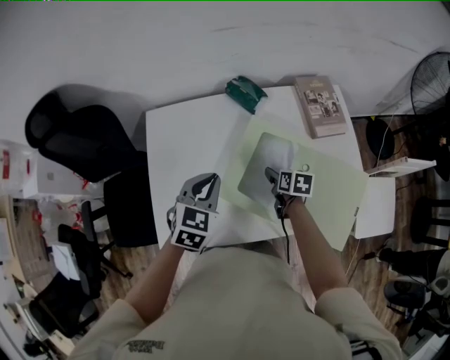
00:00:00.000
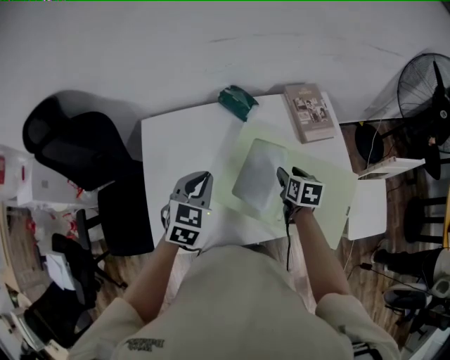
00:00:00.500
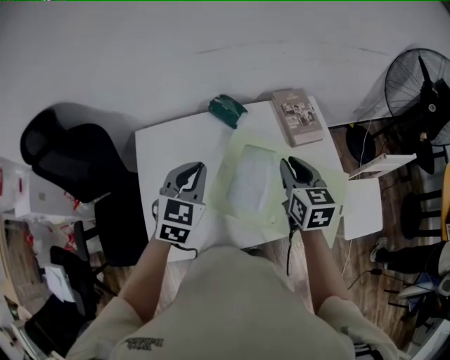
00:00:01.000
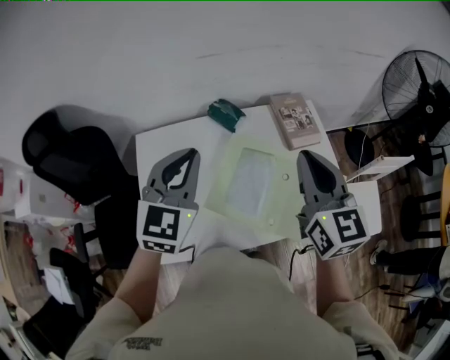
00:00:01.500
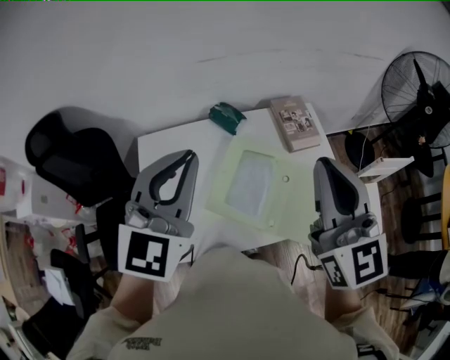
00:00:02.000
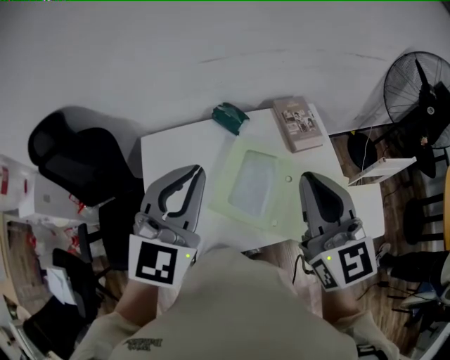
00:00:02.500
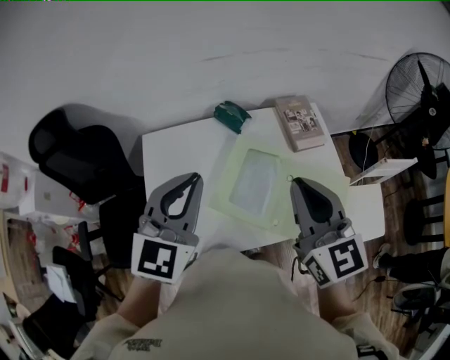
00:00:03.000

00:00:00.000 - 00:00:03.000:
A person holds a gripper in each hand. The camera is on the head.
00:00:00.000 - 00:00:01.500: The left gripper shifts roughly 20 cm upward, and turns by approximately 30 degrees, while the right gripper moves upward, approximately 40 cm, tilts its fingers about 40 degrees upward, and closes its fingers.
00:00:01.500 - 00:00:03.000: Both grippers travel together backward, some 5 cm. The right gripper reaches roughly 10 cm upward, then returns. Meanwhile the left gripper goes upward and returns, approximately 10 cm each way.

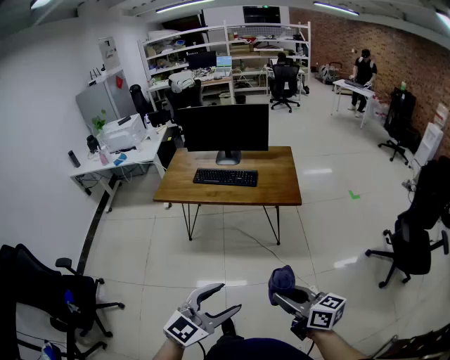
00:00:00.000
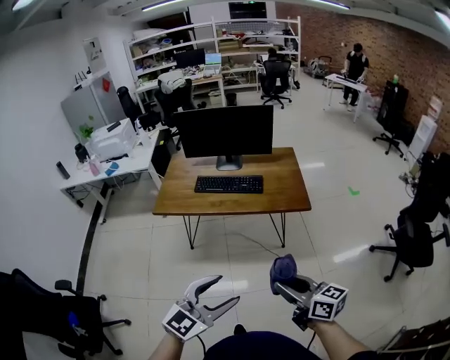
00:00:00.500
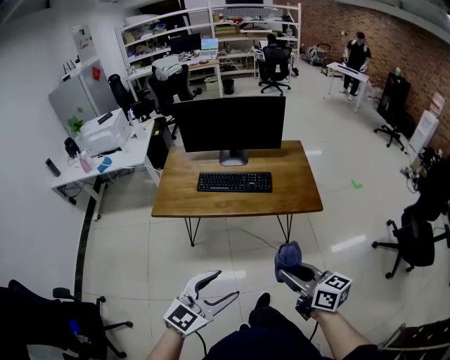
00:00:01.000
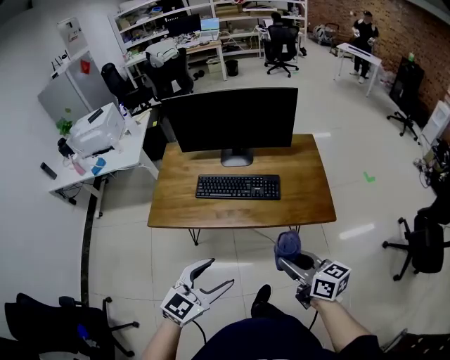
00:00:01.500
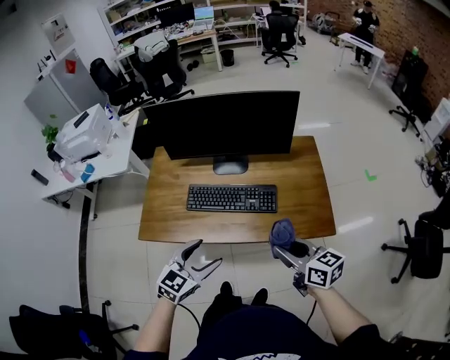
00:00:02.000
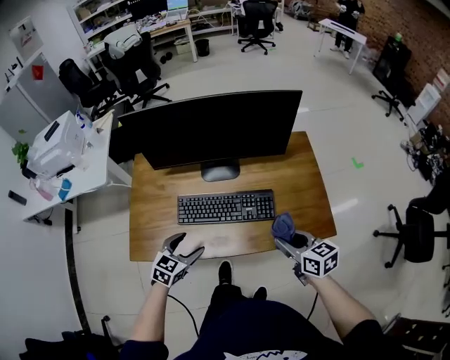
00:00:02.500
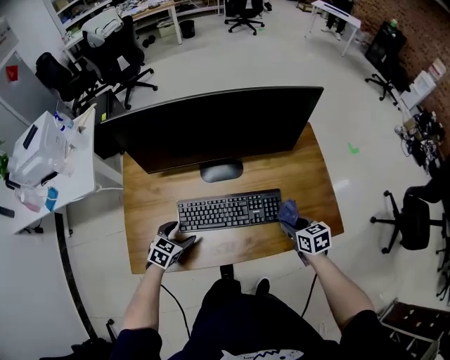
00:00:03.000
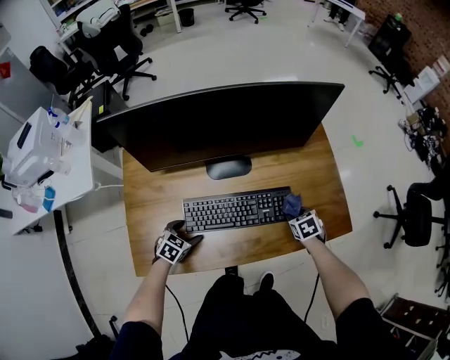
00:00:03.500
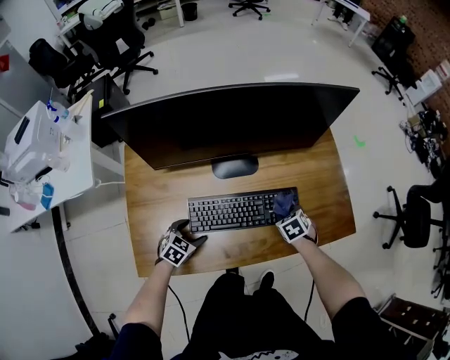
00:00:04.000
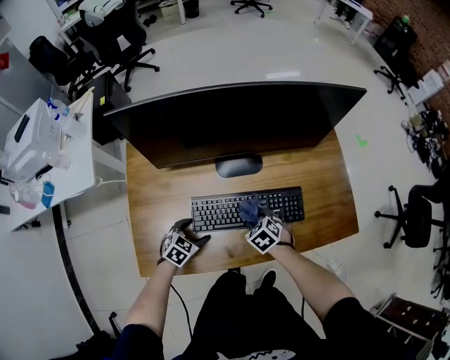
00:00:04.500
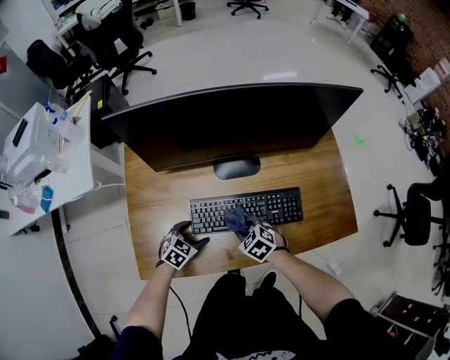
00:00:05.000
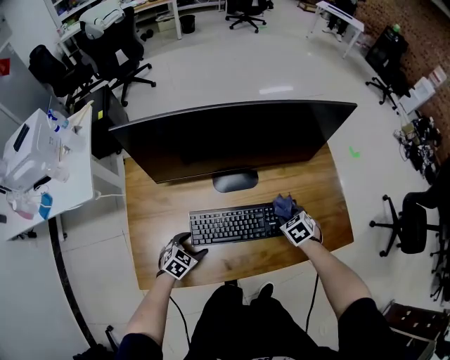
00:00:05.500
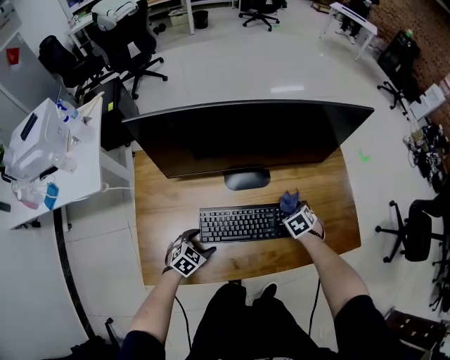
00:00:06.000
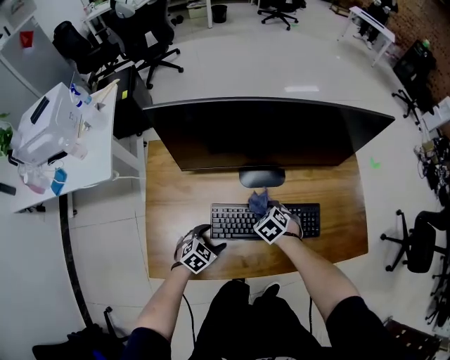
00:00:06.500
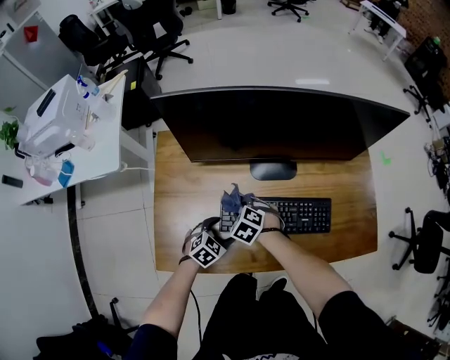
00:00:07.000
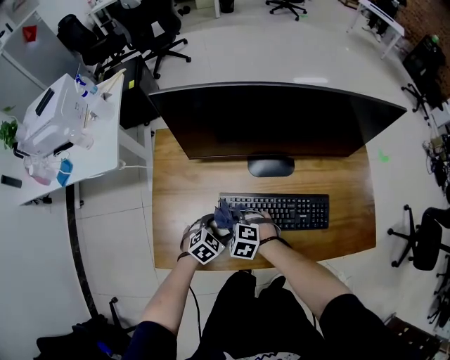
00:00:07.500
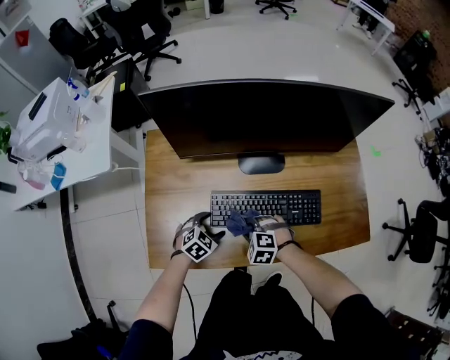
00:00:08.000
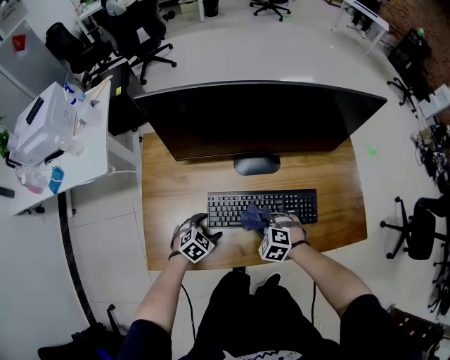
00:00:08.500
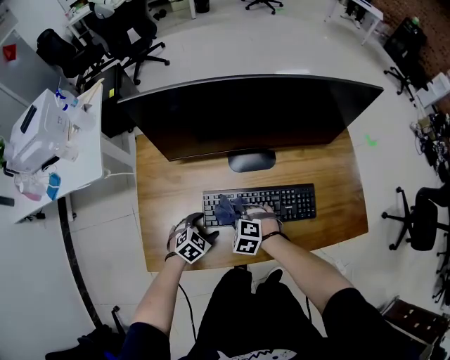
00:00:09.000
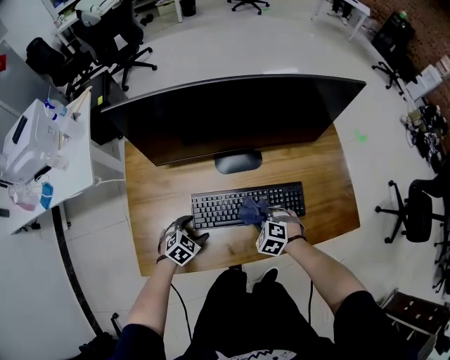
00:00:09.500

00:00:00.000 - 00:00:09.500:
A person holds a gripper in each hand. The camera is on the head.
00:00:00.000 - 00:00:02.000: The two grippers travel together, forward, about 60 cm.
00:00:02.000 - 00:00:04.000: The two grippers go about 30 cm downward. The left gripper changes its angle by about 30 degrees. Meanwhile the right gripper angles its fingers downward, by some 50 degrees.
00:00:04.000 - 00:00:05.500: The right gripper moves about 20 cm to the left and comes back.
00:00:05.500 - 00:00:07.500: The right gripper changes place by approximately 35 cm, and rolls counterclockwise, seen from behind, by approximately 40 degrees.
00:00:07.500 - 00:00:09.500: The right gripper goes left and right, about 20 cm each way, reversing 2 times.

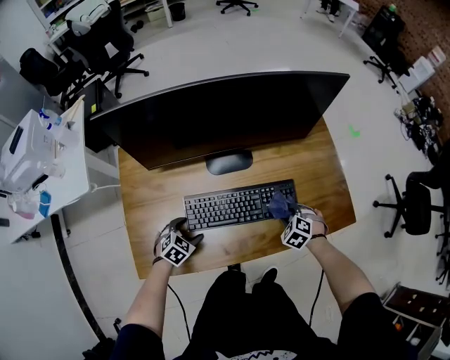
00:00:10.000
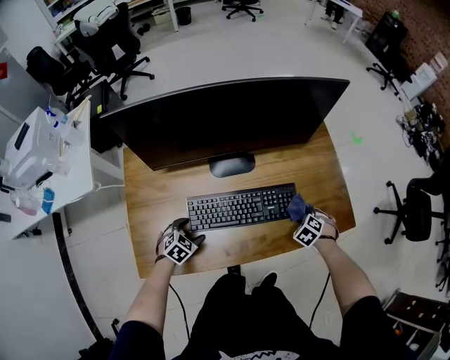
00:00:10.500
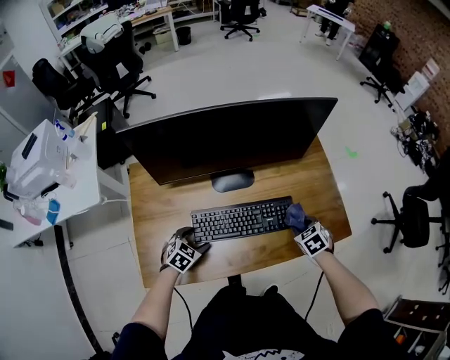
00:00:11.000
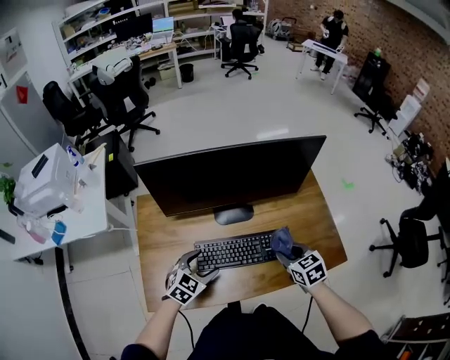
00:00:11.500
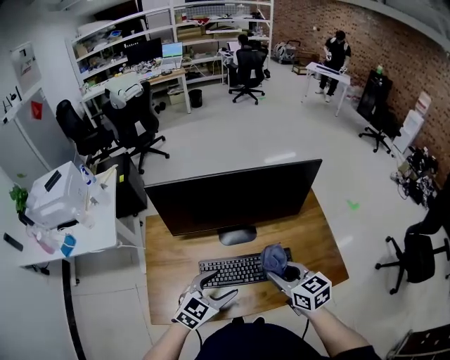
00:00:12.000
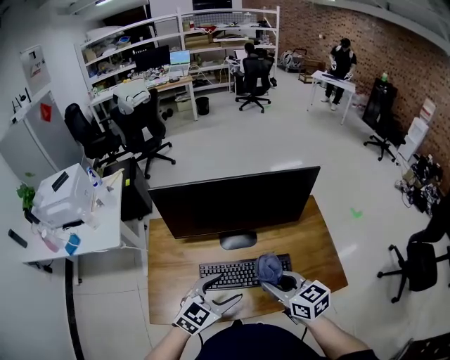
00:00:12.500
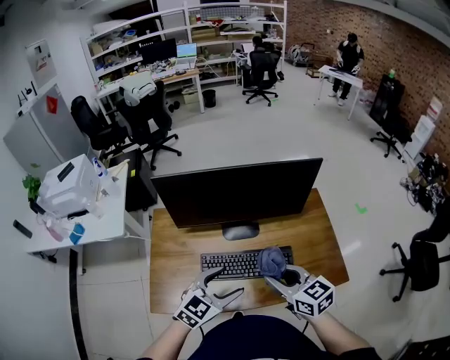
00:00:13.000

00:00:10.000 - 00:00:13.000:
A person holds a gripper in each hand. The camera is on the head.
00:00:10.000 - 00:00:11.500: The grippers both shift upward by some 20 cm. The right gripper turns by some 50 degrees, while the left gripper changes its angle by some 20 degrees.
00:00:11.500 - 00:00:13.000: The right gripper moves upward and backward, about 15 cm, and rotates about 30 degrees. The left gripper travels upward and to the right by about 15 cm.

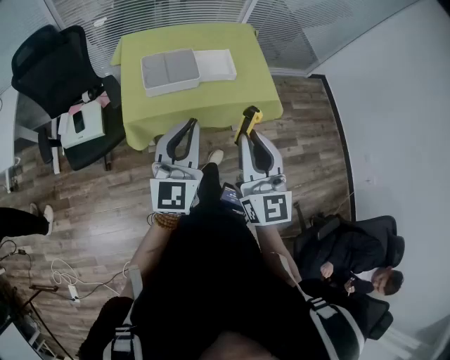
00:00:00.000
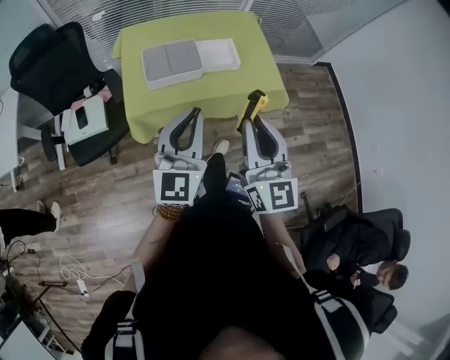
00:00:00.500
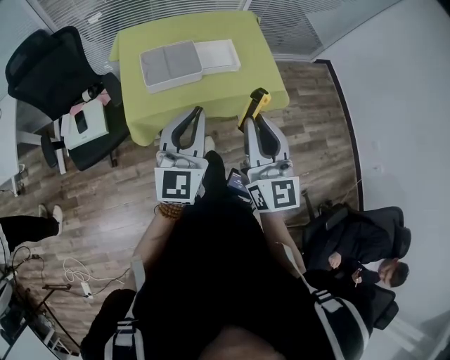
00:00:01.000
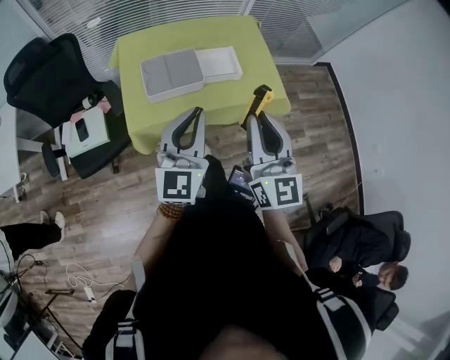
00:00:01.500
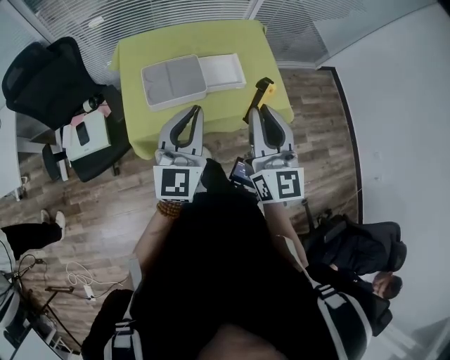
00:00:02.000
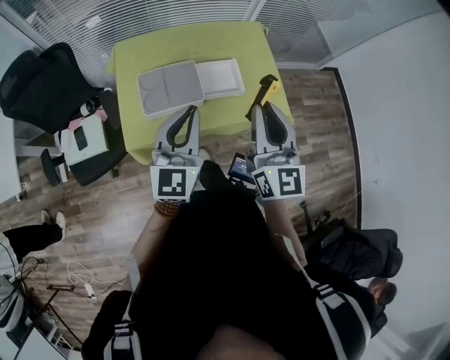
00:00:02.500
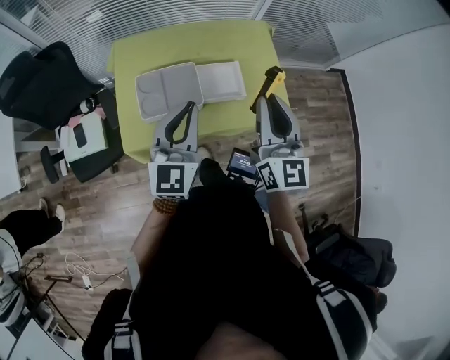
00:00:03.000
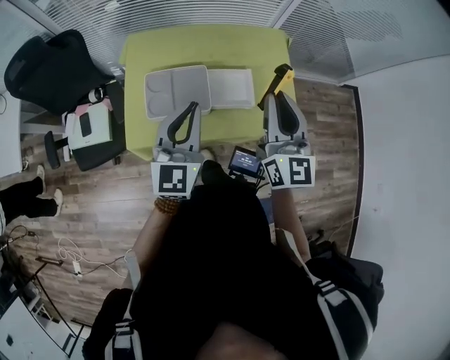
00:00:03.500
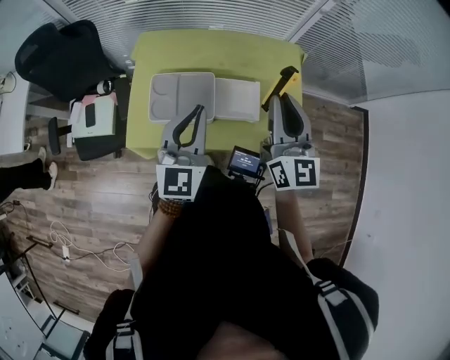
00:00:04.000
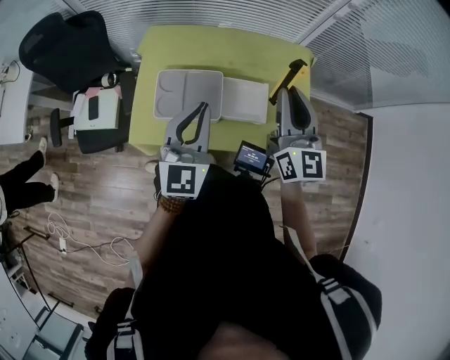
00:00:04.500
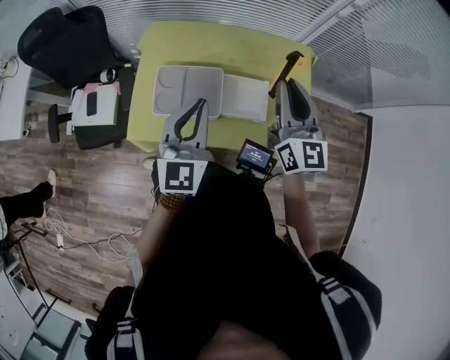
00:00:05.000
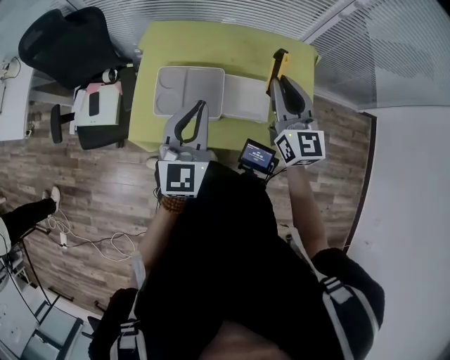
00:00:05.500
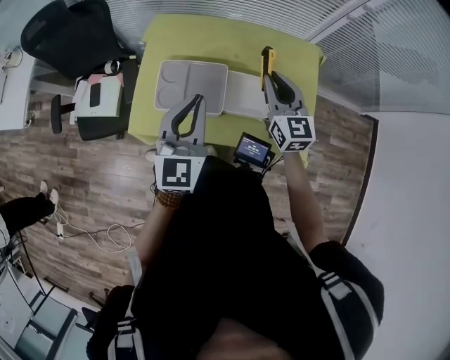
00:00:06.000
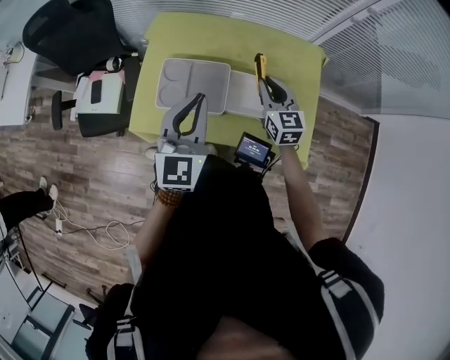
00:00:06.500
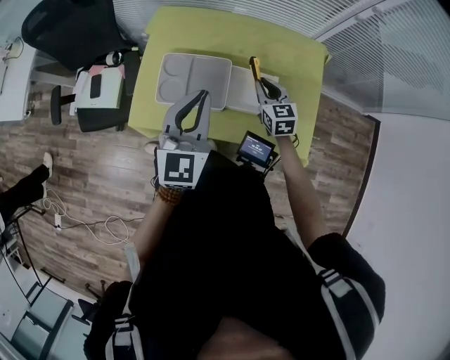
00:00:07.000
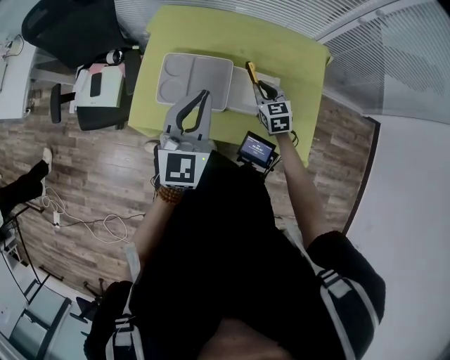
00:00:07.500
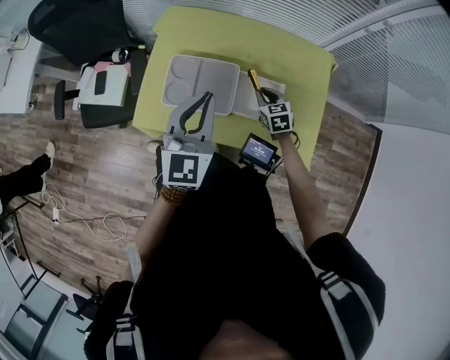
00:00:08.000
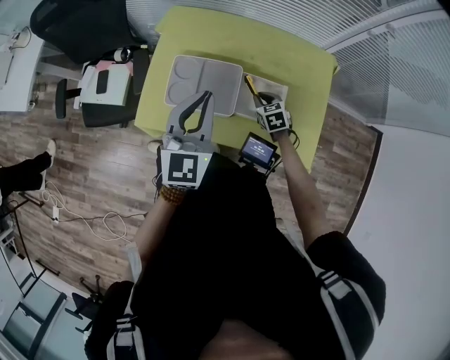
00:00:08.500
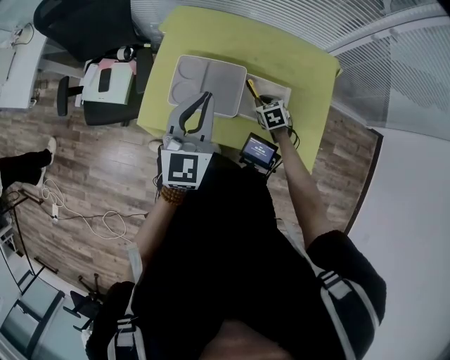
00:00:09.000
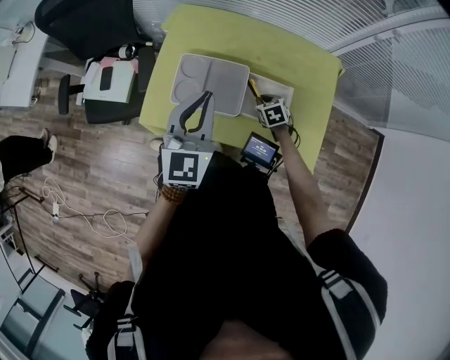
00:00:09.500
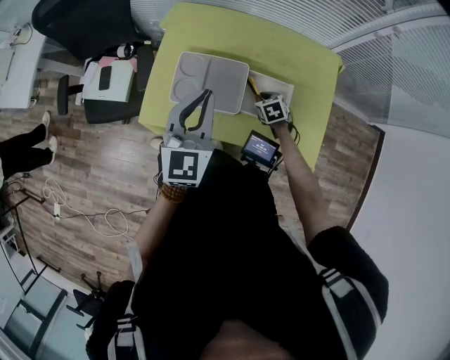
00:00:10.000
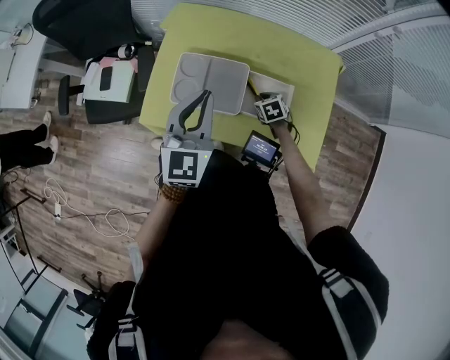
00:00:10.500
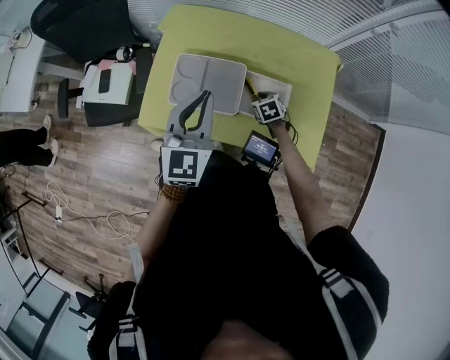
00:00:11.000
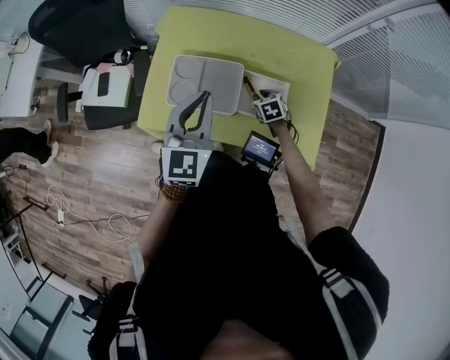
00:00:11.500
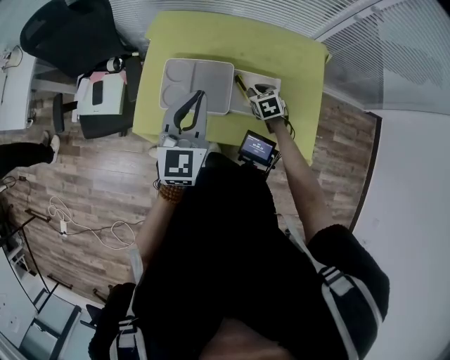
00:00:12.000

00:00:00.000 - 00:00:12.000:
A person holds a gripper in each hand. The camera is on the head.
00:00:00.000 - 00:00:02.000: Both grippers move forward, about 15 cm.
00:00:02.000 - 00:00:04.000: The two grippers go about 20 cm forward.
00:00:04.000 - 00:00:06.000: The right gripper travels downward and forward by approximately 15 cm, and changes its angle by roughly 20 degrees, while the left gripper moves roughly 5 cm.
00:00:06.000 - 00:00:08.000: The right gripper heads downward, covering about 20 cm, and angles its fingers downward, by some 30 degrees.
00:00:08.000 - 00:00:10.000: The right gripper is displaced downward by some 5 cm.
00:00:10.000 - 00:00:12.000: The grippers make only small movements.
